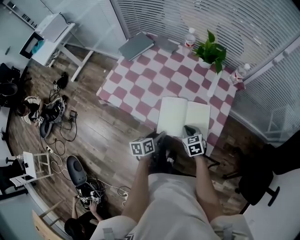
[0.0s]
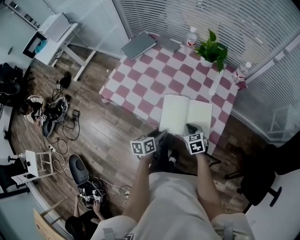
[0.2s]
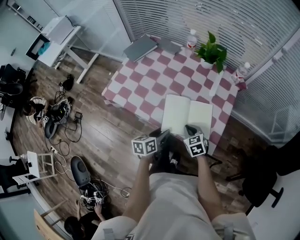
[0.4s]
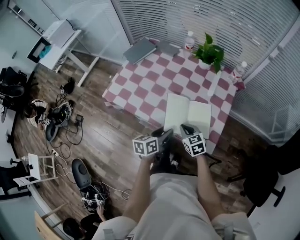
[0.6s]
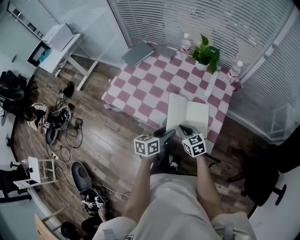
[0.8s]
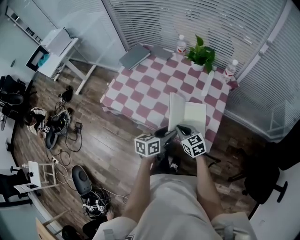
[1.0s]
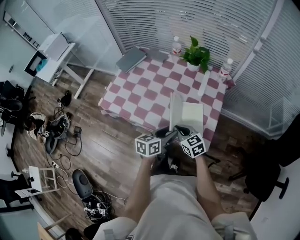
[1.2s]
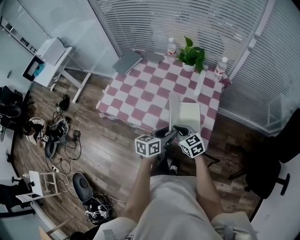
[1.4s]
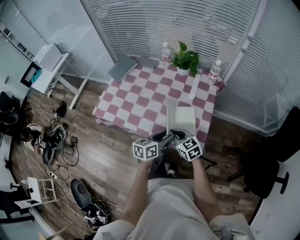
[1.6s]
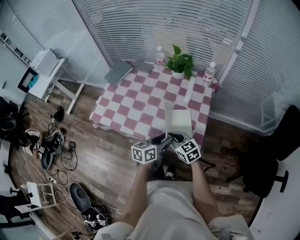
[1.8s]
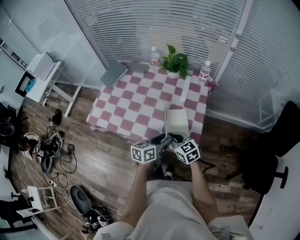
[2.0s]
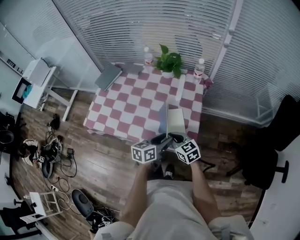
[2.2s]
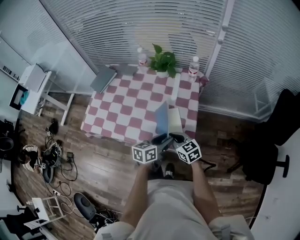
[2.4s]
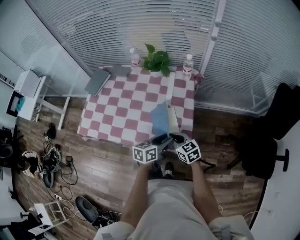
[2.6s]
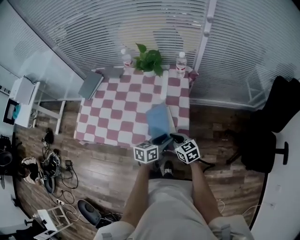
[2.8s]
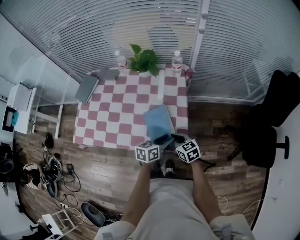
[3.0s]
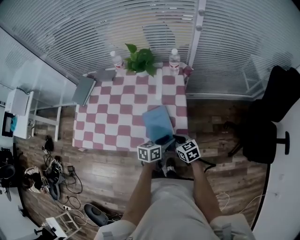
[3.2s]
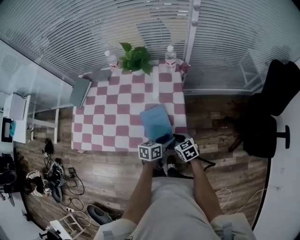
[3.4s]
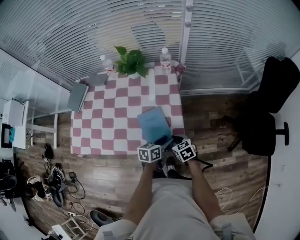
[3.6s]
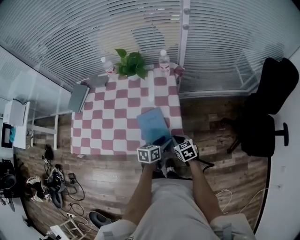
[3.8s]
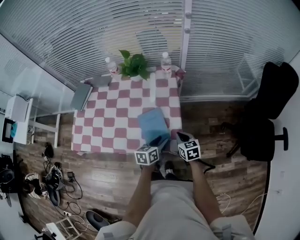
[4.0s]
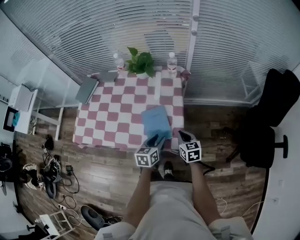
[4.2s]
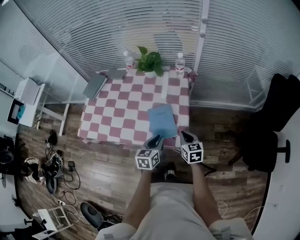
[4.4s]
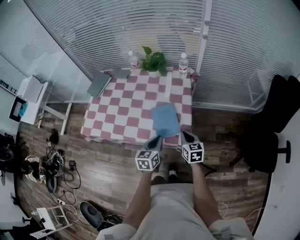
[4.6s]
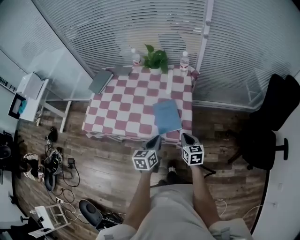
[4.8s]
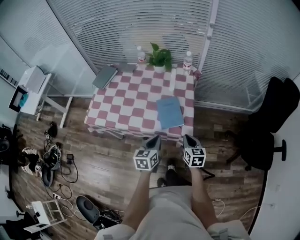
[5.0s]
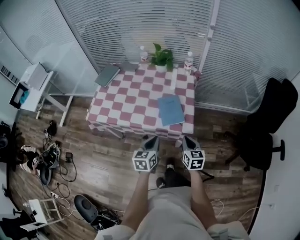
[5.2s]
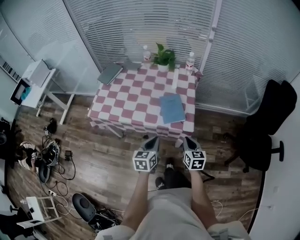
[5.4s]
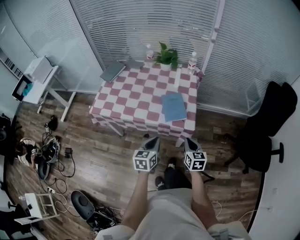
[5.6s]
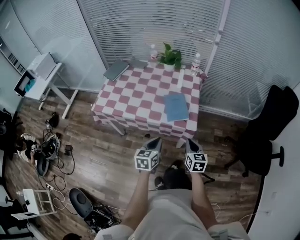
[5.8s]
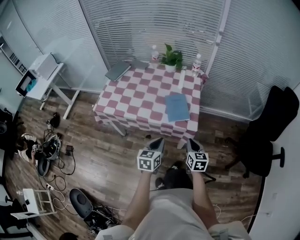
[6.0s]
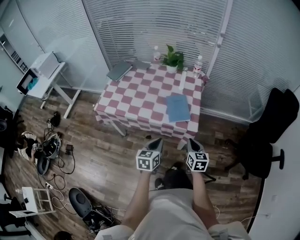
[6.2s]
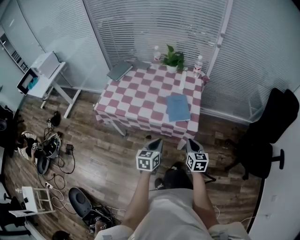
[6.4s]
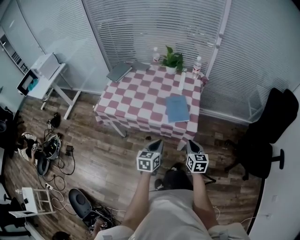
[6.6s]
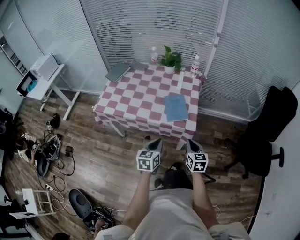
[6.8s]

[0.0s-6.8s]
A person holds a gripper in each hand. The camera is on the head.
0.0s to 1.4s: The left gripper is displaced upward and to the right by about 15 cm, and turns by approximately 30 degrees, while the right gripper shifts about 10 cm upward, and turns by approximately 20 degrees.
1.4s to 2.8s: Both grippers travel together to the right, approximately 15 cm.
2.8s to 4.0s: The right gripper travels to the right by approximately 10 cm, and changes its angle by approximately 20 degrees.
4.0s to 5.4s: The right gripper shifts roughly 20 cm backward and upward, while the left gripper heads backward, to the left and upward, covering some 25 cm, turns by roughly 20 degrees, and closes up.
5.4s to 6.8s: The grippers stay close to where they were, moving slightly.

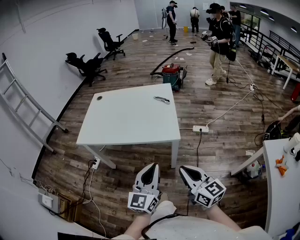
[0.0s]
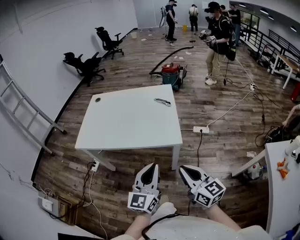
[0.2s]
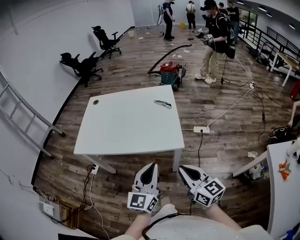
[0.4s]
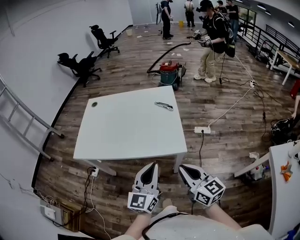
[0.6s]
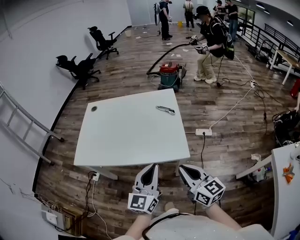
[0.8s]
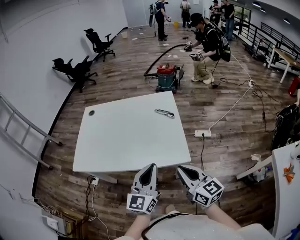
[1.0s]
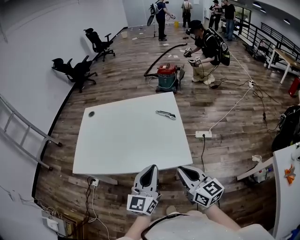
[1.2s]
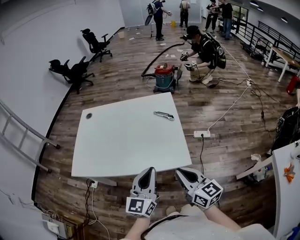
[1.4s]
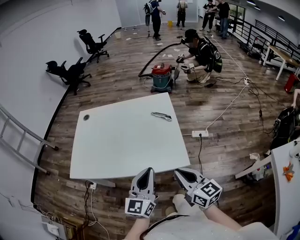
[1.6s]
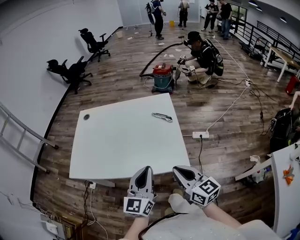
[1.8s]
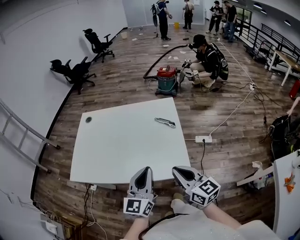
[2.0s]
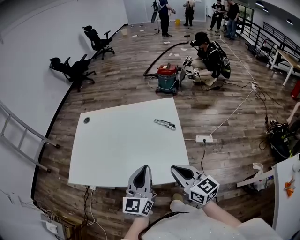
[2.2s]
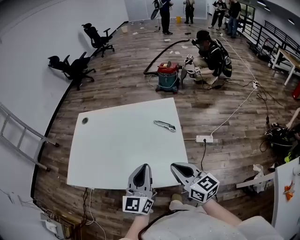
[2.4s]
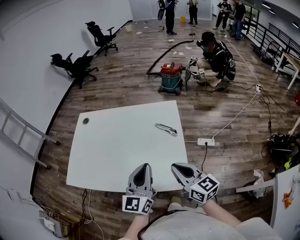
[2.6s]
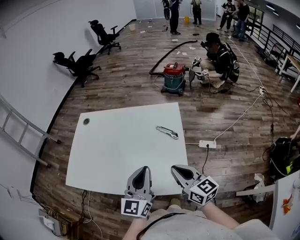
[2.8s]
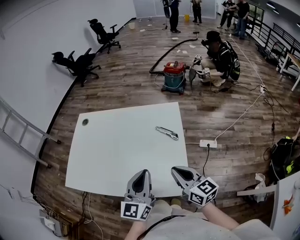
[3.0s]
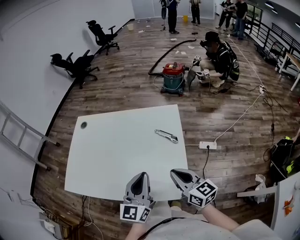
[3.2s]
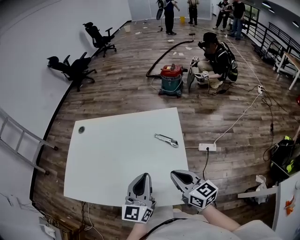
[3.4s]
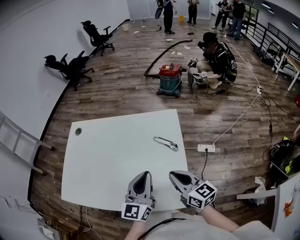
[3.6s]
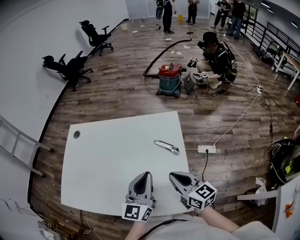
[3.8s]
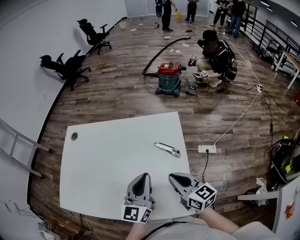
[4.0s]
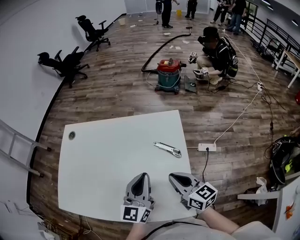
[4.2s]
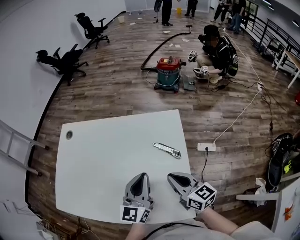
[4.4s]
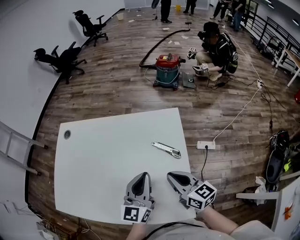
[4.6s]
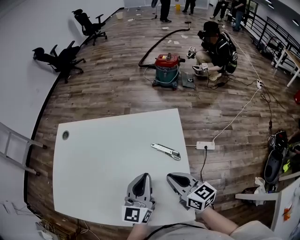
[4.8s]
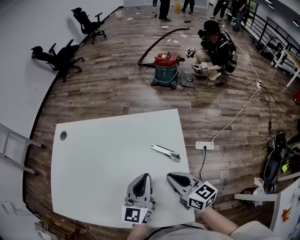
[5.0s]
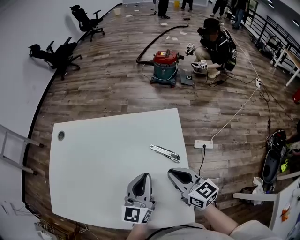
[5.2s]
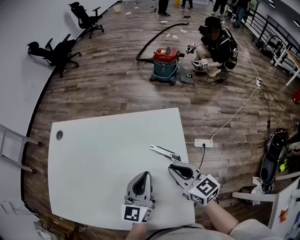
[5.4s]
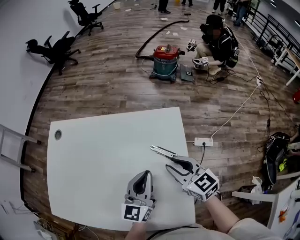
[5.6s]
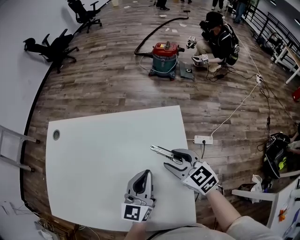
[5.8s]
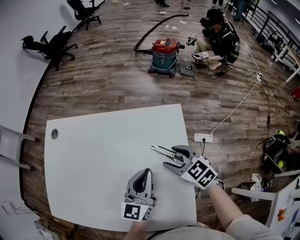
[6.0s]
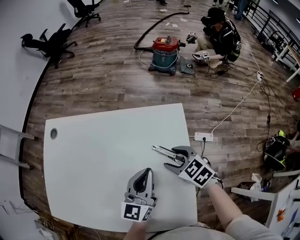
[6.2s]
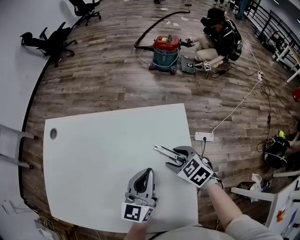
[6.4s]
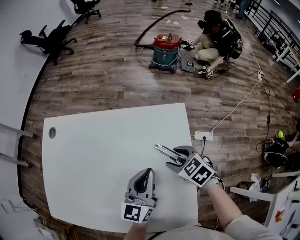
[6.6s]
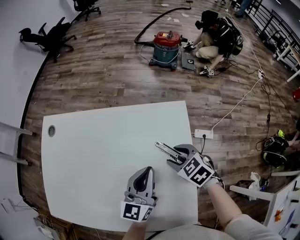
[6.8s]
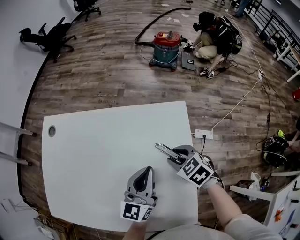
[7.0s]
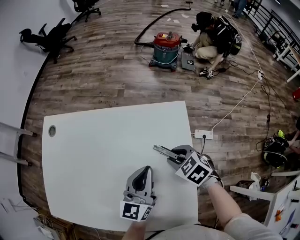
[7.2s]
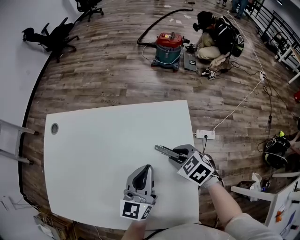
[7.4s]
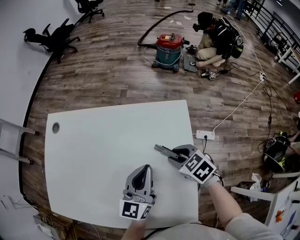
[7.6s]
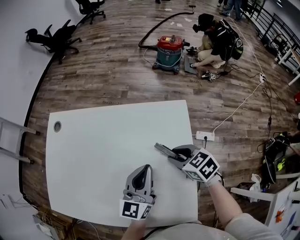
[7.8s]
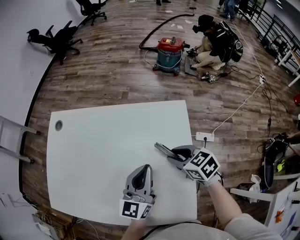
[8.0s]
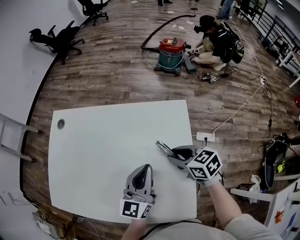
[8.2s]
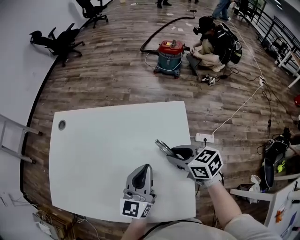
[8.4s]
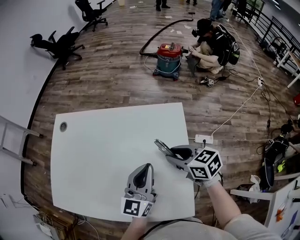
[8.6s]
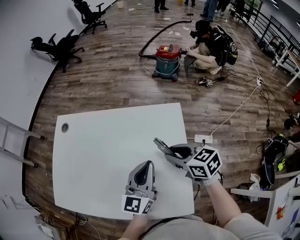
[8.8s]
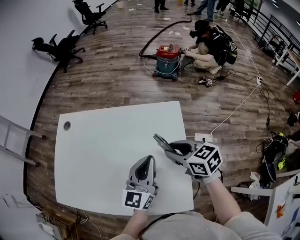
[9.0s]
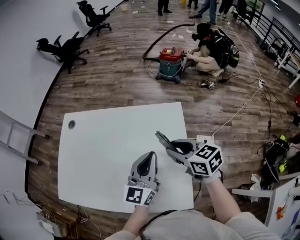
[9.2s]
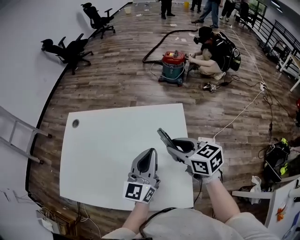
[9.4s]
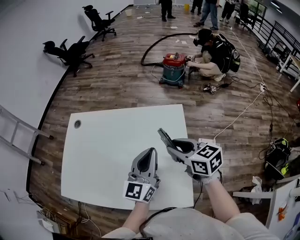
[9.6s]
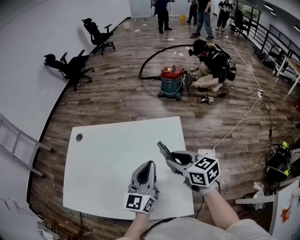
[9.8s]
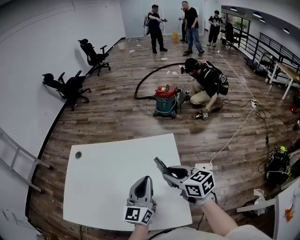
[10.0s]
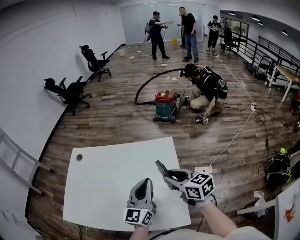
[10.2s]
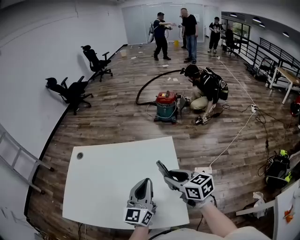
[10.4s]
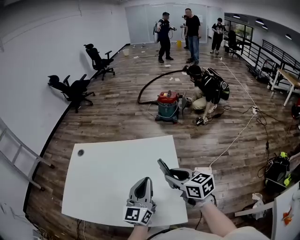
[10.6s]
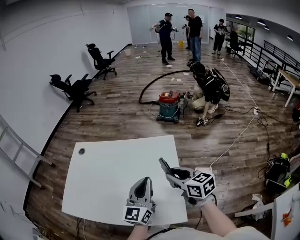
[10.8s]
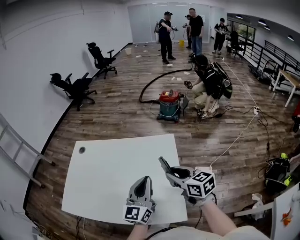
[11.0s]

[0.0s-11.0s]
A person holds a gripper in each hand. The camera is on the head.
0.0s to 1.6s: Both grippers travel together forward, approximately 20 cm.
1.6s to 3.2s: The two grippers go roughly 15 cm forward.
3.2s to 4.8s: Both grippers move forward and downward, approximately 15 cm.
4.8s to 6.2s: The right gripper heads forward and downward, covering some 15 cm, angles its fingers downward, by approximately 30 degrees, and opens its fingers; the left gripper is displaced forward by some 5 cm.
6.2s to 7.8s: The right gripper closes up.
7.8s to 9.4s: The right gripper heads upward, covering about 15 cm, and rotates roughly 20 degrees. The left gripper heads upward, covering some 10 cm.
9.4s to 11.0s: The grippers both shift backward by approximately 10 cm.

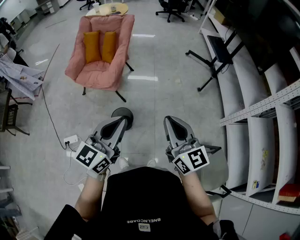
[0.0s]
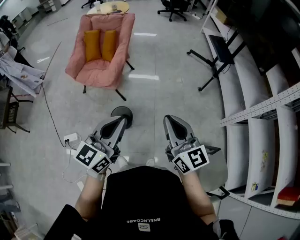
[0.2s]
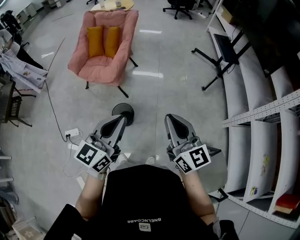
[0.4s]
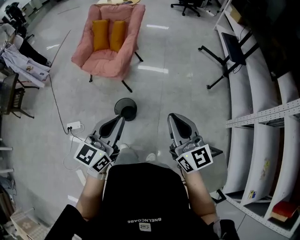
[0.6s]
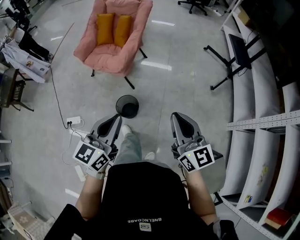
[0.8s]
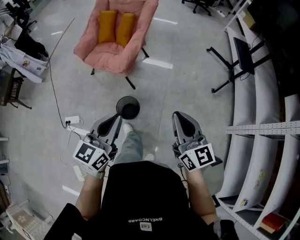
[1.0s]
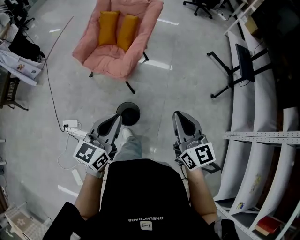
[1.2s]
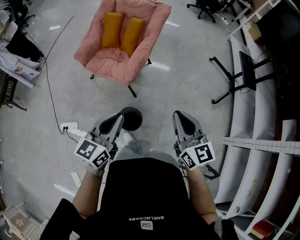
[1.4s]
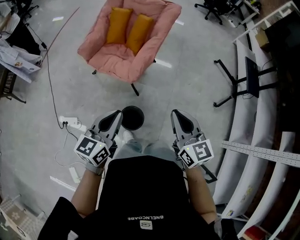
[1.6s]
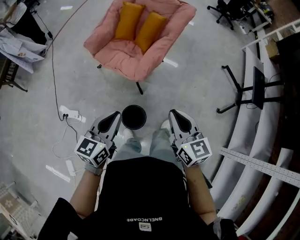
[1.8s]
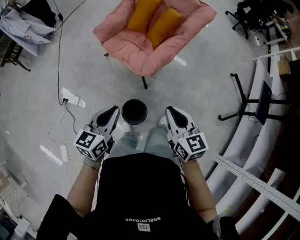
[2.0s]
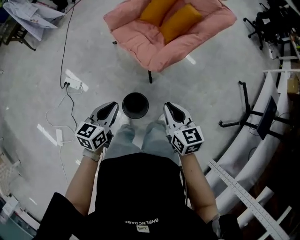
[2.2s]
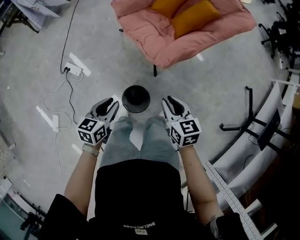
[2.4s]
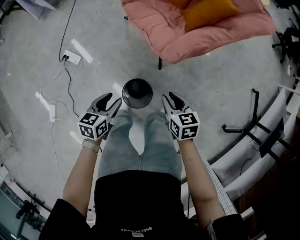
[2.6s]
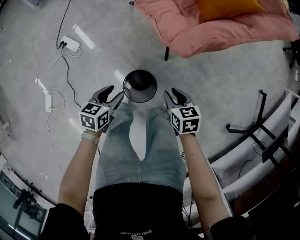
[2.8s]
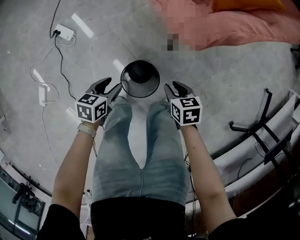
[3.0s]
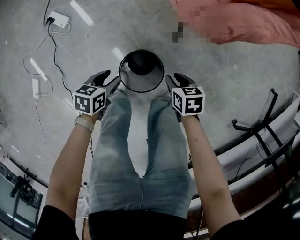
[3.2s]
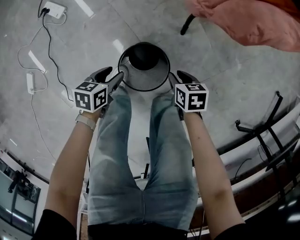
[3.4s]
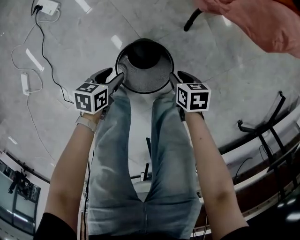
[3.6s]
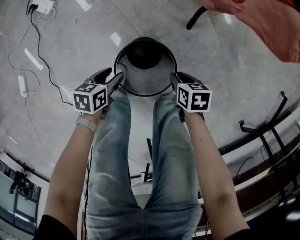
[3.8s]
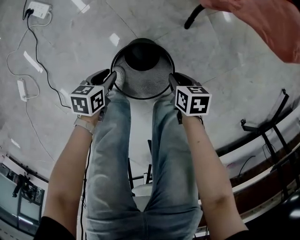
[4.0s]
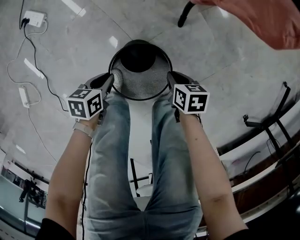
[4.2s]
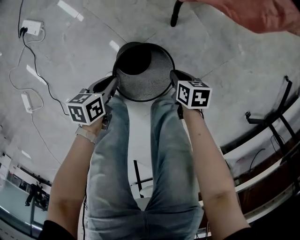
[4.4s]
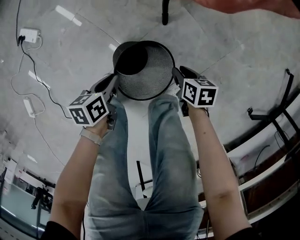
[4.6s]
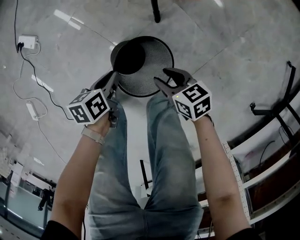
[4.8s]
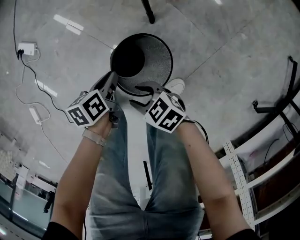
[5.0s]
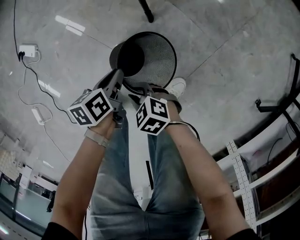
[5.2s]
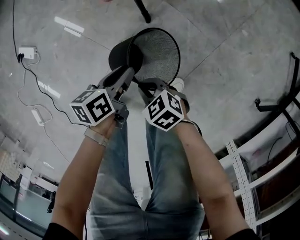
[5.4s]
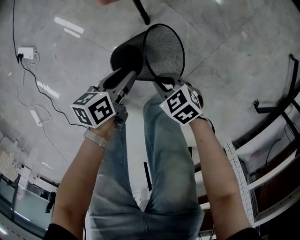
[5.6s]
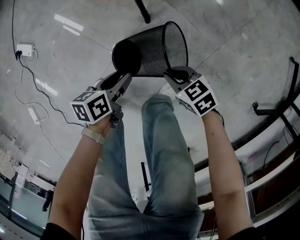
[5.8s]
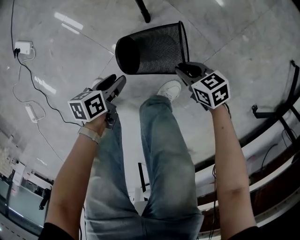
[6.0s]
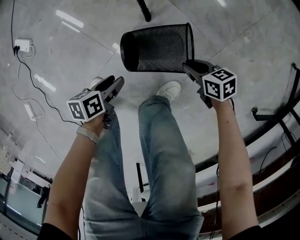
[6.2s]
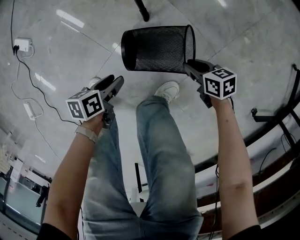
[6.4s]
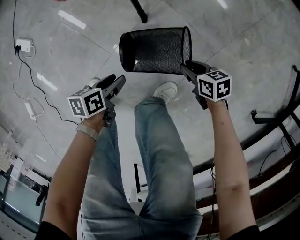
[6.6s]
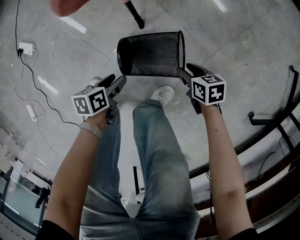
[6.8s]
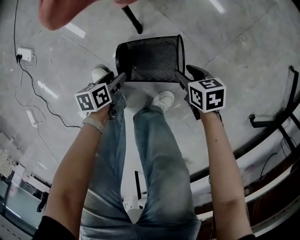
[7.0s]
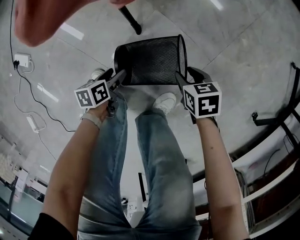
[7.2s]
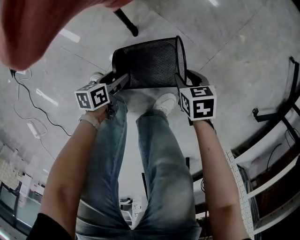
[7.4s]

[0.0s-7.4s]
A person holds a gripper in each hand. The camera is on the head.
0.0s to 1.4s: The left gripper travels forward, to the left and downward by some 25 cm. Meanwhile the right gripper travels forward and to the left by approximately 25 cm.
1.4s to 3.0s: The two grippers go about 50 cm downward. The left gripper tilts its fingers roughly 40 degrees downward, and opens up; the right gripper points its fingers some 50 degrees further downward, and opens.
3.0s to 4.4s: Both grippers move downward, some 25 cm. The left gripper closes its fingers; the right gripper rotates roughly 20 degrees.
4.4s to 6.0s: The left gripper changes place by roughly 15 cm, and opens up, while the right gripper goes upward and returns, roughly 10 cm each way, rotates roughly 30 degrees, and opens and closes again.
6.0s to 7.4s: The right gripper moves some 5 cm, rotates roughly 30 degrees, and opens its fingers, while the left gripper goes roughly 10 cm downward.
